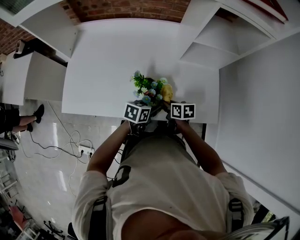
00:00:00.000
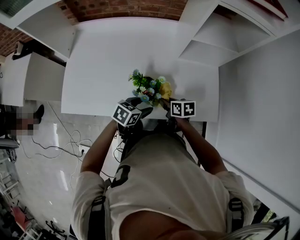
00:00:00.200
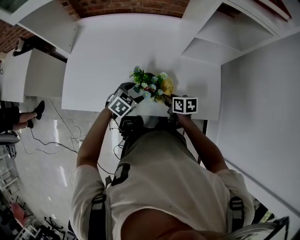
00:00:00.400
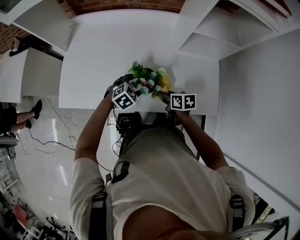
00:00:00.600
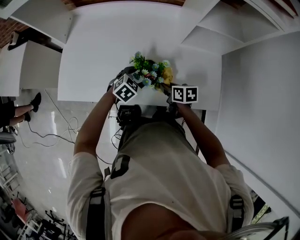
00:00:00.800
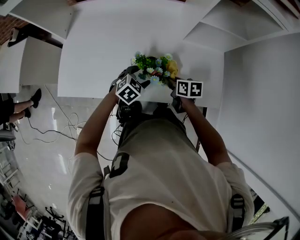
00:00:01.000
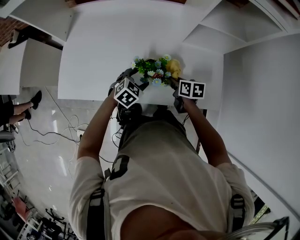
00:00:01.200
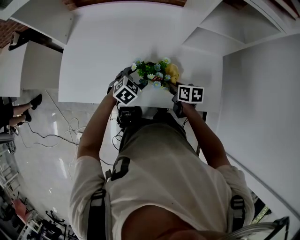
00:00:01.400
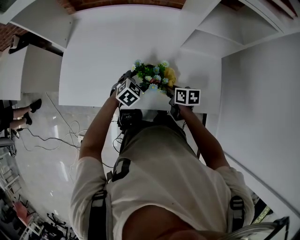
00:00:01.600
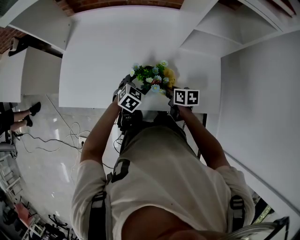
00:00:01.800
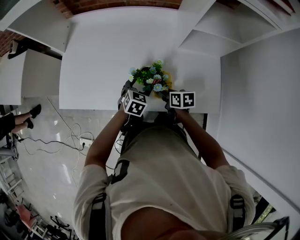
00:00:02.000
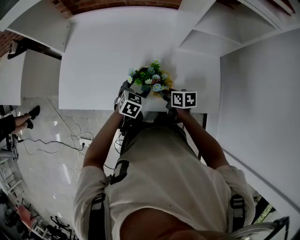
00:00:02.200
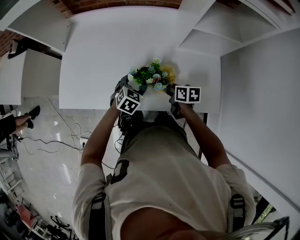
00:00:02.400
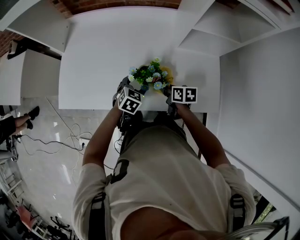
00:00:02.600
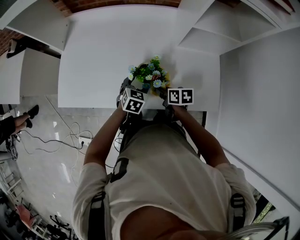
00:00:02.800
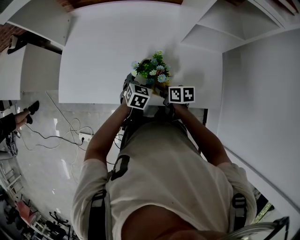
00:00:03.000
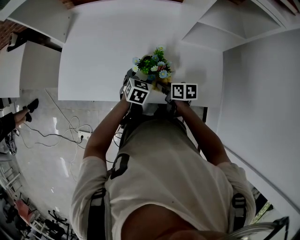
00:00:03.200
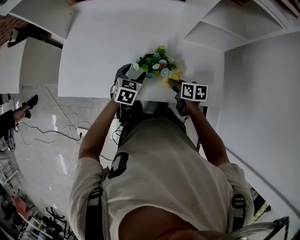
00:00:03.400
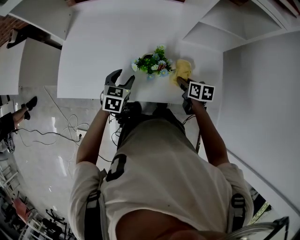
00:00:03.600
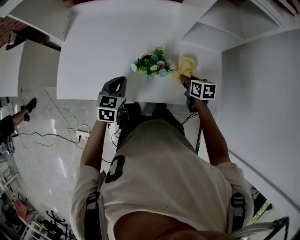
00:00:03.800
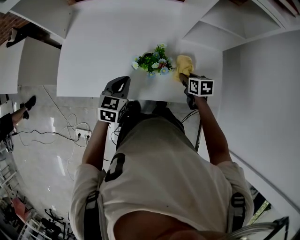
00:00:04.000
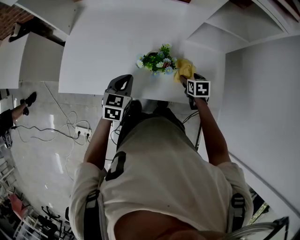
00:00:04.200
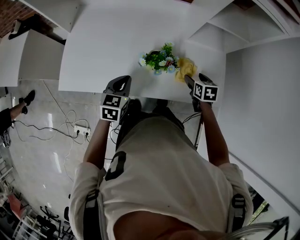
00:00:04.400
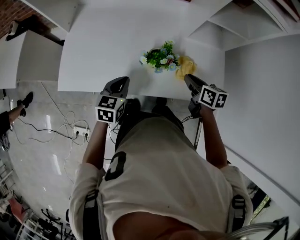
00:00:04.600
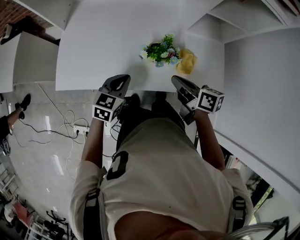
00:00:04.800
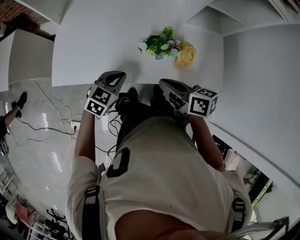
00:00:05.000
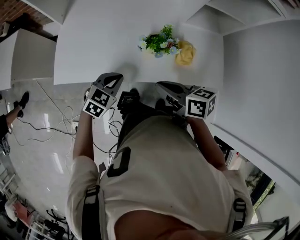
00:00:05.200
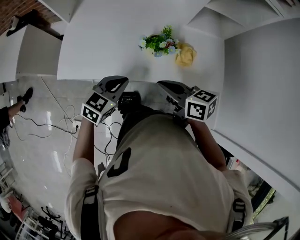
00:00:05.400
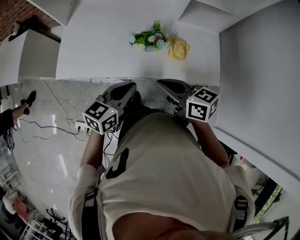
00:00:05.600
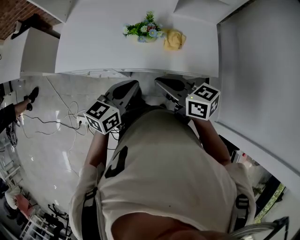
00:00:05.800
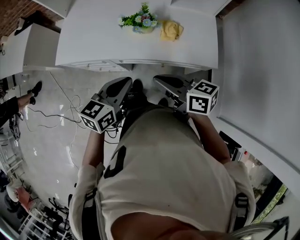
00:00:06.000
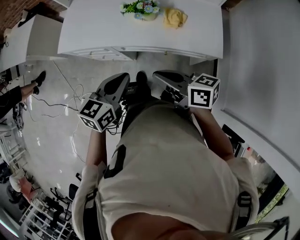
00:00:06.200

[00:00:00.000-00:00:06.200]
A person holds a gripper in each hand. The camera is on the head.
00:00:00.000 to 00:00:01.600: The left gripper shifts approximately 10 cm forward and to the left, and rolls clockwise, seen from behind, by about 40 degrees.
00:00:01.600 to 00:00:03.200: The left gripper turns by about 20 degrees.
00:00:03.200 to 00:00:04.600: The left gripper is displaced to the left, upward and backward by roughly 15 cm, and closes its fingers. Meanwhile the right gripper travels upward and to the right by about 15 cm, and opens, then closes once more.
00:00:04.600 to 00:00:06.200: Both grippers move backward, some 25 cm. The right gripper swivels about 40 degrees.

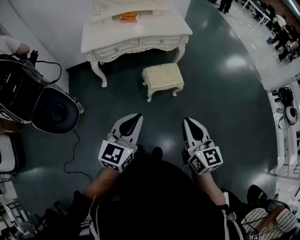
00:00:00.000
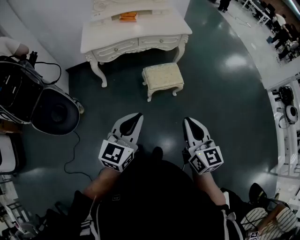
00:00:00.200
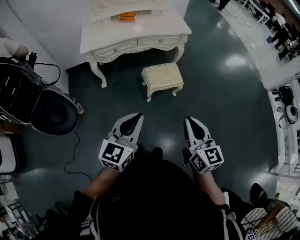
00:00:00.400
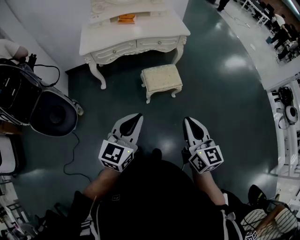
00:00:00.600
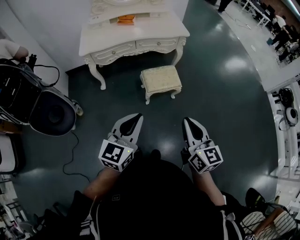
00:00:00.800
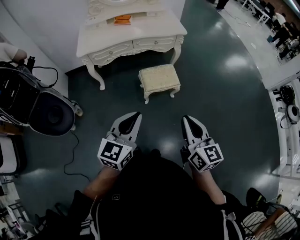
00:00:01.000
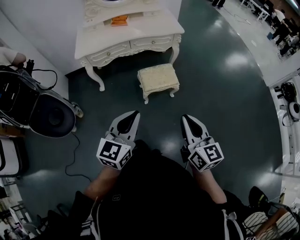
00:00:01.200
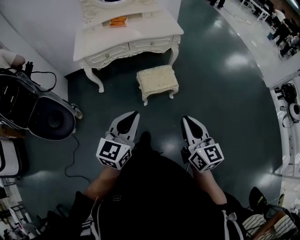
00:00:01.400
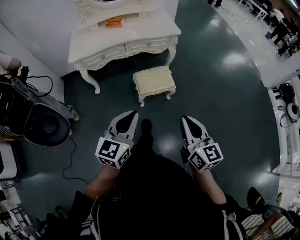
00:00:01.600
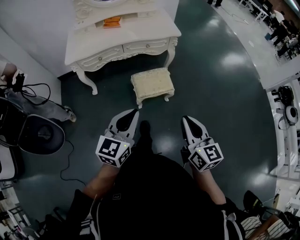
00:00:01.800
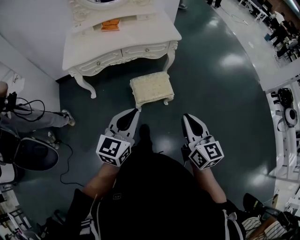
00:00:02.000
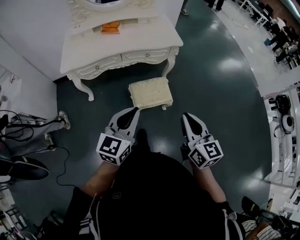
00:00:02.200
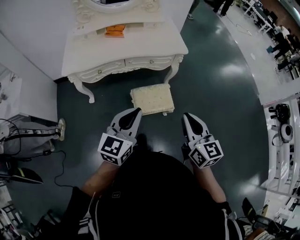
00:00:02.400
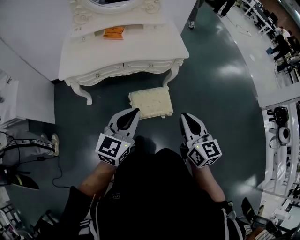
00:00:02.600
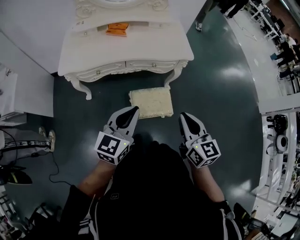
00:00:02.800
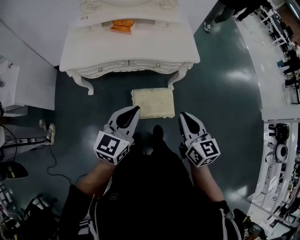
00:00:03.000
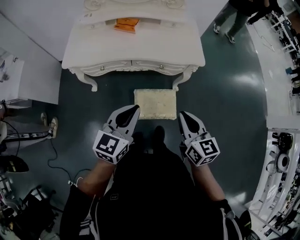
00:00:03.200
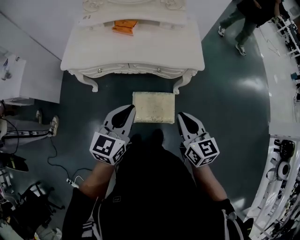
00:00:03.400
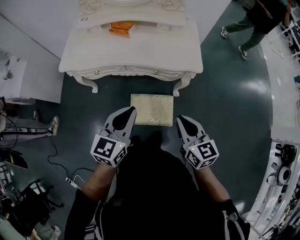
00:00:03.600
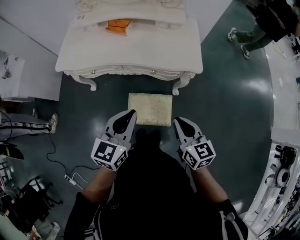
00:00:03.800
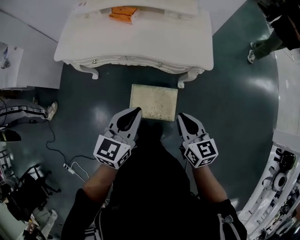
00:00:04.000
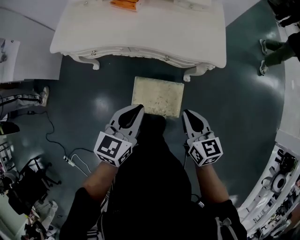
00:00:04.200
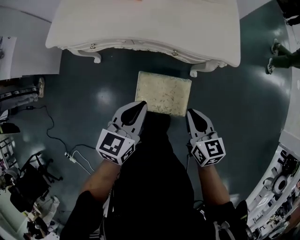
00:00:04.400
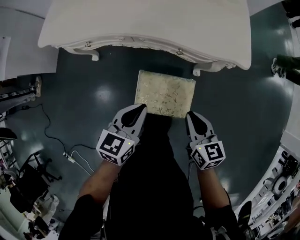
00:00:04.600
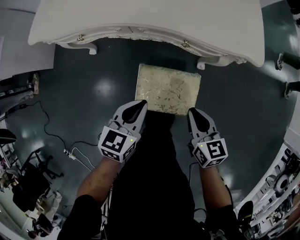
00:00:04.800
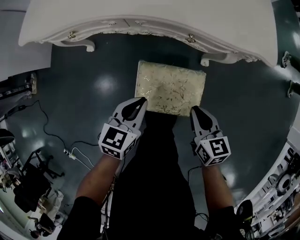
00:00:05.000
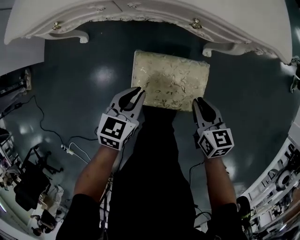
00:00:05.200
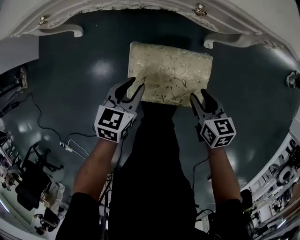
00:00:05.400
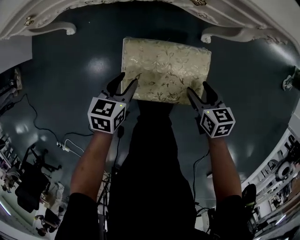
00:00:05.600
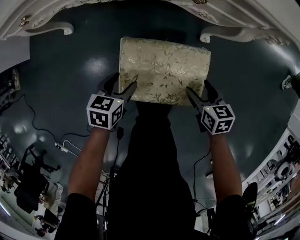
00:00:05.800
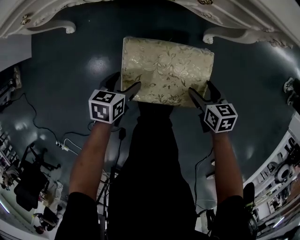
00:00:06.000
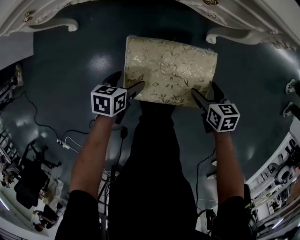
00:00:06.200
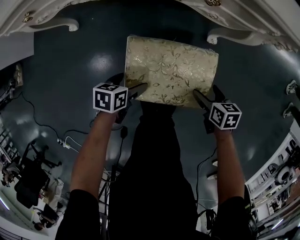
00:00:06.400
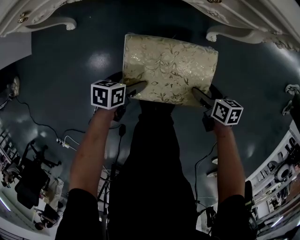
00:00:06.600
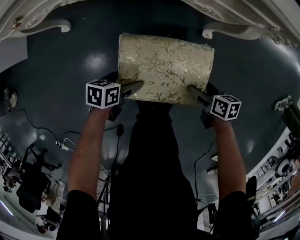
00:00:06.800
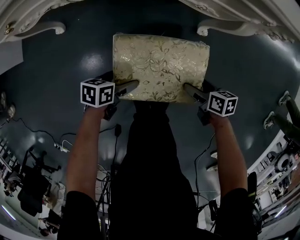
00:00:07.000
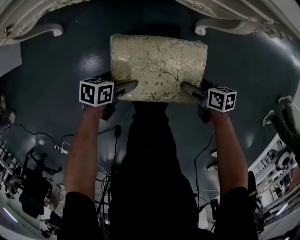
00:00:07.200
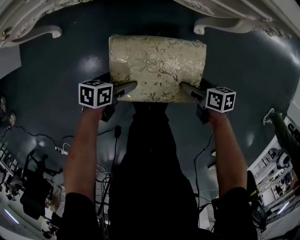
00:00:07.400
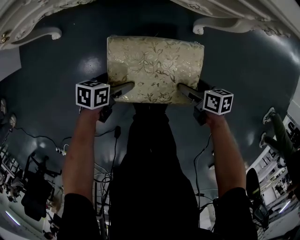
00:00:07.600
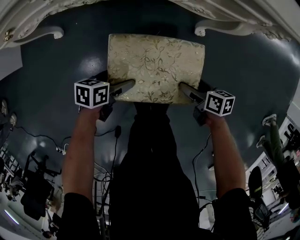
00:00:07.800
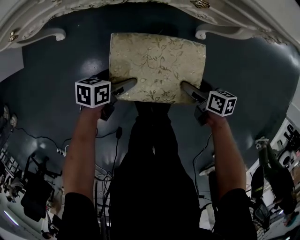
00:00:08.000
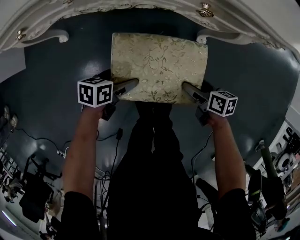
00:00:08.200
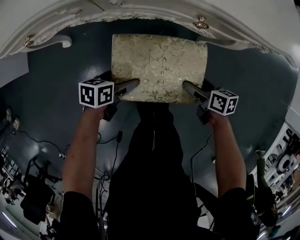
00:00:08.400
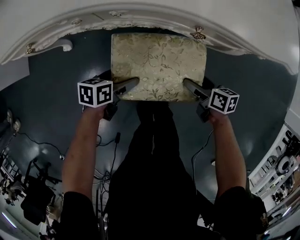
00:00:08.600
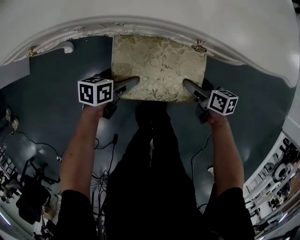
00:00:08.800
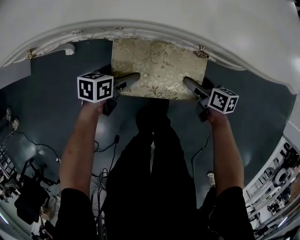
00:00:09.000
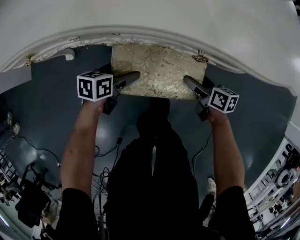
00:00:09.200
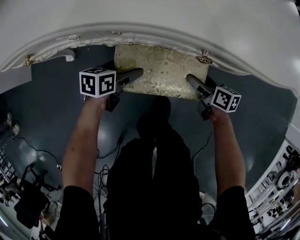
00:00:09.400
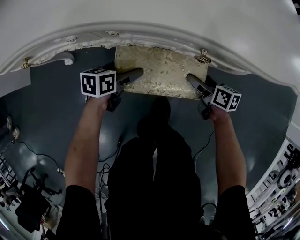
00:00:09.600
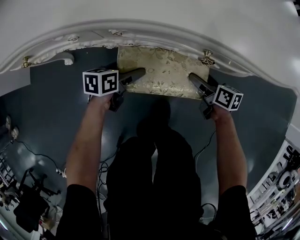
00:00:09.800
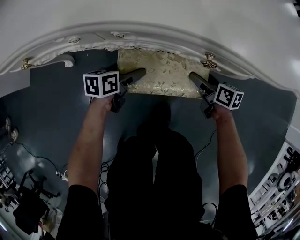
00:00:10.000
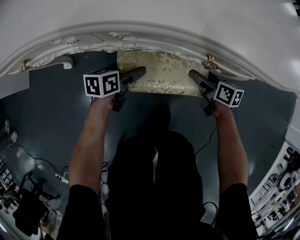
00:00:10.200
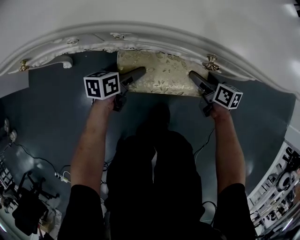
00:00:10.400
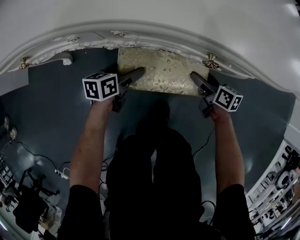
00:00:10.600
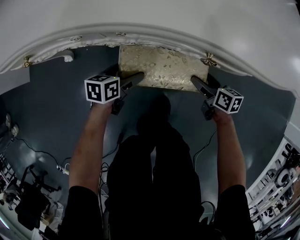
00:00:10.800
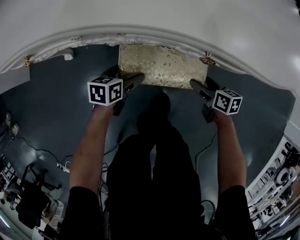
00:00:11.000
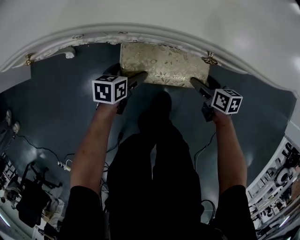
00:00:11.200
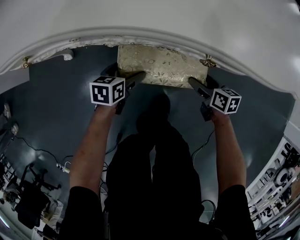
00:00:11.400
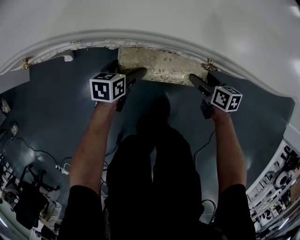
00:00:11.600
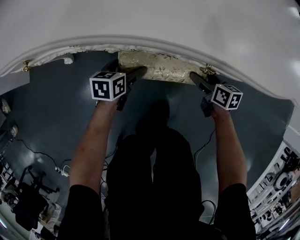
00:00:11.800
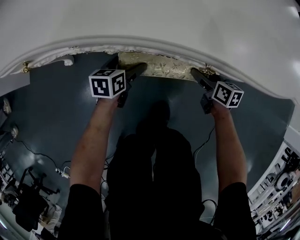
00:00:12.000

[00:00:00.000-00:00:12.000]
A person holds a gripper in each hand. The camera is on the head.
00:00:00.000 to 00:00:01.600: The grippers both shift to the right and forward by some 10 cm.
00:00:01.600 to 00:00:03.000: Both grippers travel together forward, approximately 35 cm.
00:00:03.000 to 00:00:04.400: The right gripper moves downward and forward, roughly 25 cm, and turns by some 20 degrees. Meanwhile the left gripper is displaced downward, forward and to the right by approximately 25 cm, and changes its angle by about 20 degrees.
00:00:04.400 to 00:00:06.000: The two grippers go some 40 cm downward. The left gripper rotates some 30 degrees, and opens up; the right gripper changes its angle by some 30 degrees, and opens up.
00:00:06.000 to 00:00:07.600: The left gripper swivels some 20 degrees. The right gripper rotates some 20 degrees.
00:00:07.600 to 00:00:09.000: The right gripper moves roughly 15 cm. Meanwhile the left gripper changes place by approximately 15 cm.
00:00:09.000 to 00:00:10.400: The two grippers go roughly 5 cm forward.
00:00:10.400 to 00:00:12.000: The right gripper moves approximately 5 cm backward and comes back.

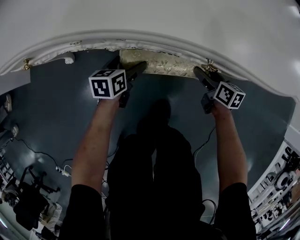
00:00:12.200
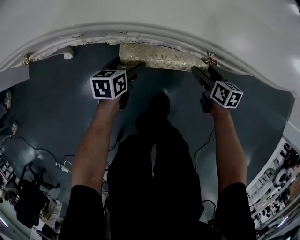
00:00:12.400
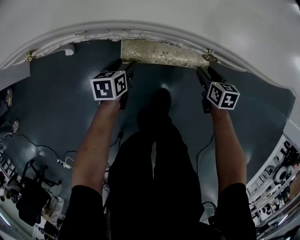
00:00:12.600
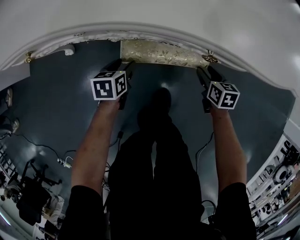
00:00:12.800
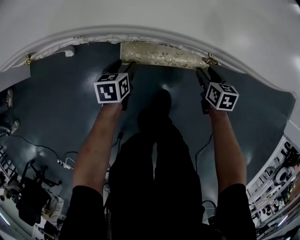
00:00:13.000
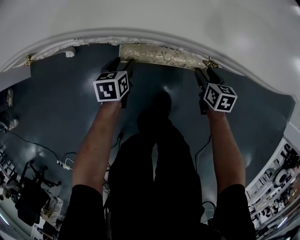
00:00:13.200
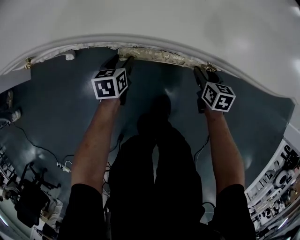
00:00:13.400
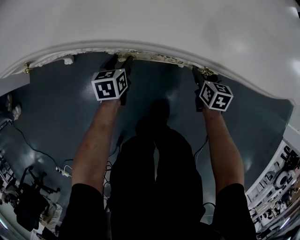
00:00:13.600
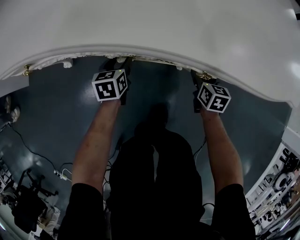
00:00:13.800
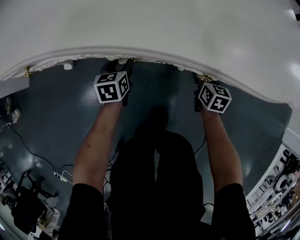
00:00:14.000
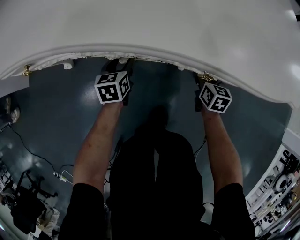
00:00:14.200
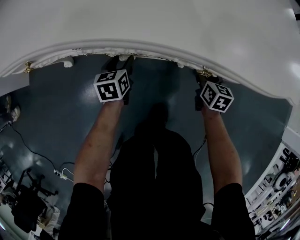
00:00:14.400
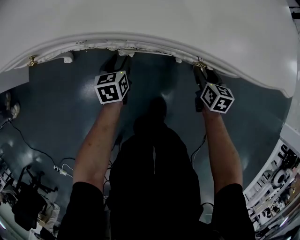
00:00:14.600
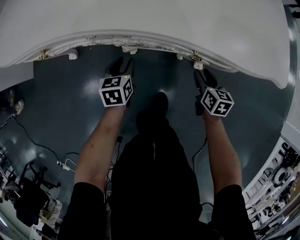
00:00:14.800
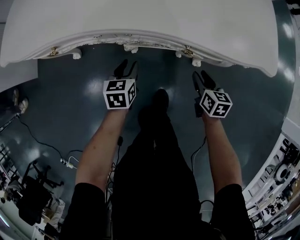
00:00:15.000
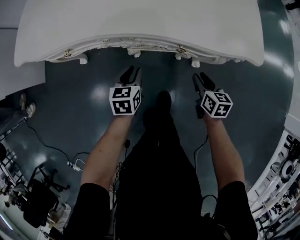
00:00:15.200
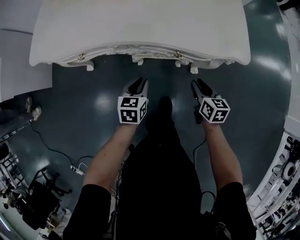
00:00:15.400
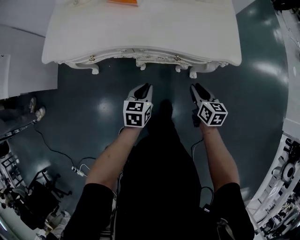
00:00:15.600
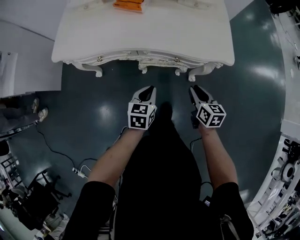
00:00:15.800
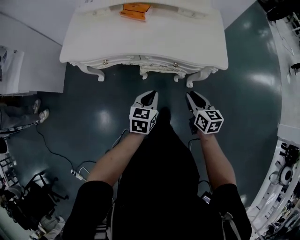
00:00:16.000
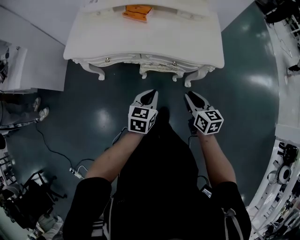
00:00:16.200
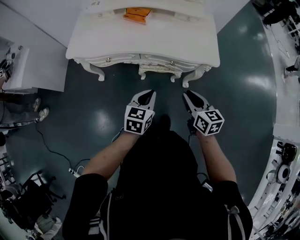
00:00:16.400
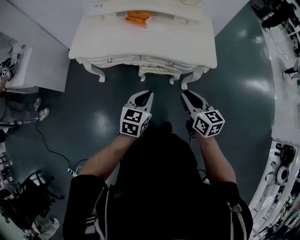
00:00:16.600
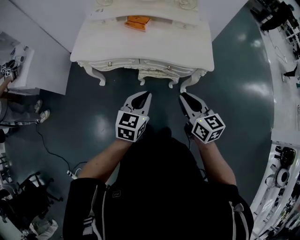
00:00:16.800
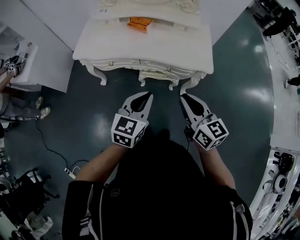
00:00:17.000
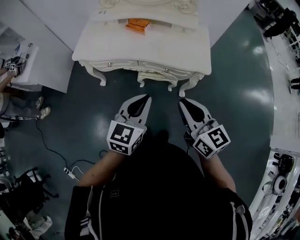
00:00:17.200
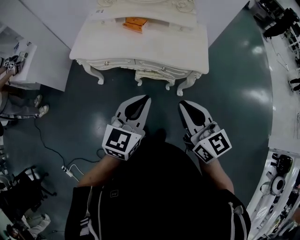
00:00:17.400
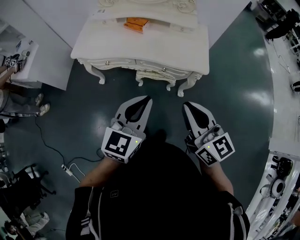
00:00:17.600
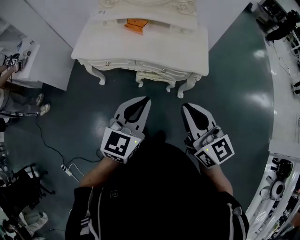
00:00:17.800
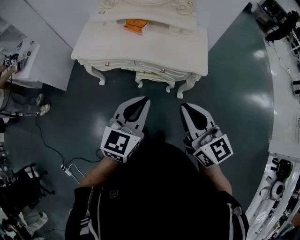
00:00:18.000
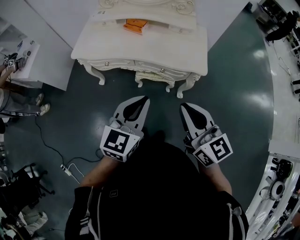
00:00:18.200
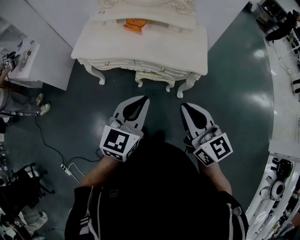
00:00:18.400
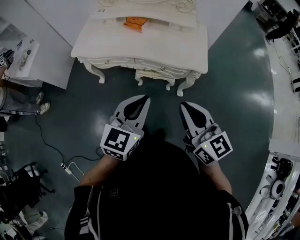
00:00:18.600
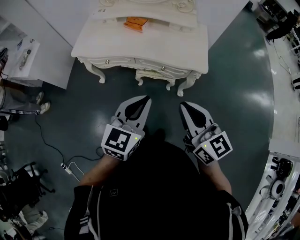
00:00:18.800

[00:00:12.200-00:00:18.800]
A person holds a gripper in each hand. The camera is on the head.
00:00:12.200 to 00:00:13.800: The left gripper closes its fingers. Meanwhile the right gripper swivels approximately 20 degrees, and closes its fingers.
00:00:13.800 to 00:00:15.400: Both grippers move upward and backward, about 30 cm.
00:00:15.400 to 00:00:17.200: The grippers both shift upward by roughly 40 cm. The right gripper changes its angle by approximately 40 degrees; the left gripper swivels approximately 30 degrees.
00:00:17.200 to 00:00:18.800: The left gripper shifts by some 5 cm; the right gripper changes place by approximately 5 cm.
